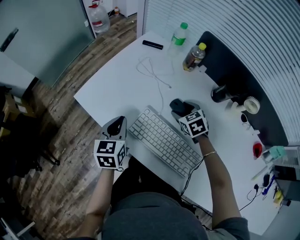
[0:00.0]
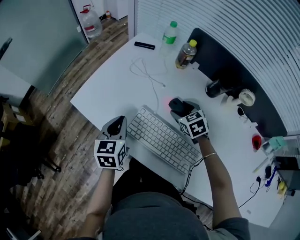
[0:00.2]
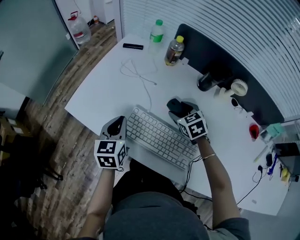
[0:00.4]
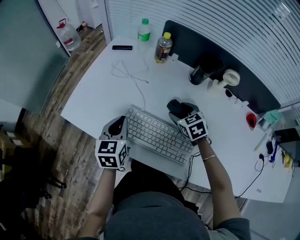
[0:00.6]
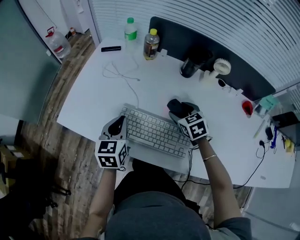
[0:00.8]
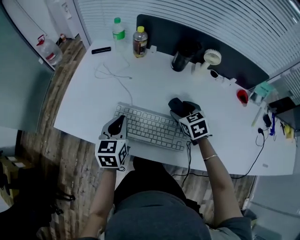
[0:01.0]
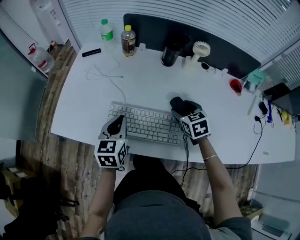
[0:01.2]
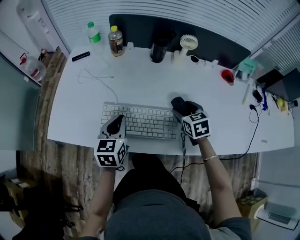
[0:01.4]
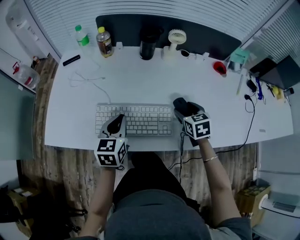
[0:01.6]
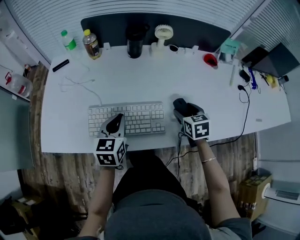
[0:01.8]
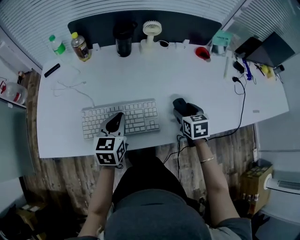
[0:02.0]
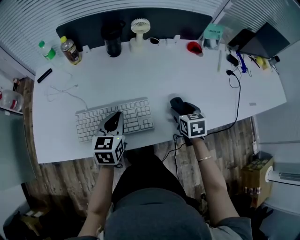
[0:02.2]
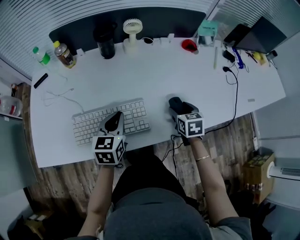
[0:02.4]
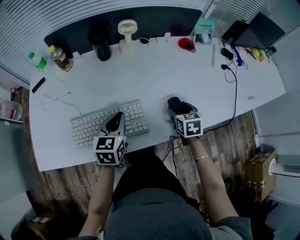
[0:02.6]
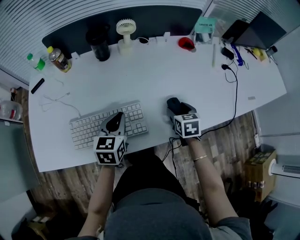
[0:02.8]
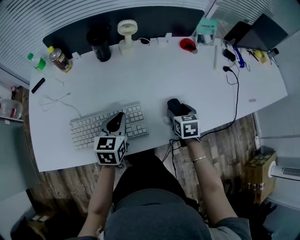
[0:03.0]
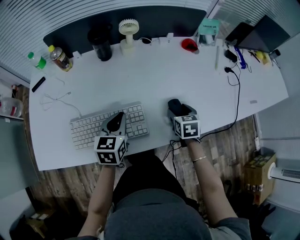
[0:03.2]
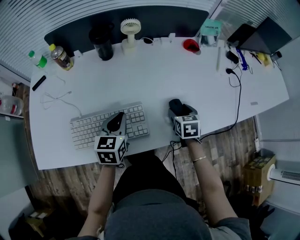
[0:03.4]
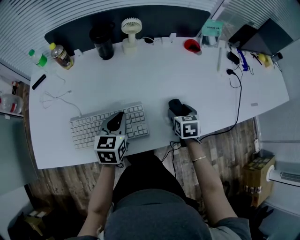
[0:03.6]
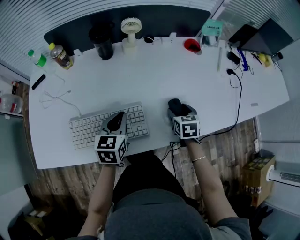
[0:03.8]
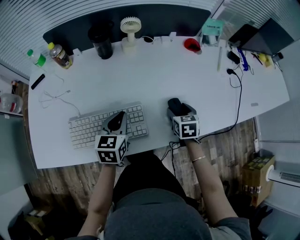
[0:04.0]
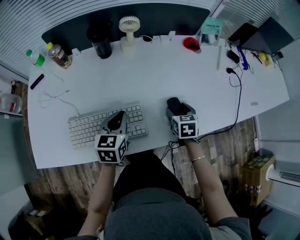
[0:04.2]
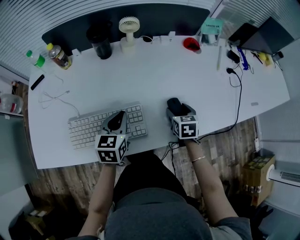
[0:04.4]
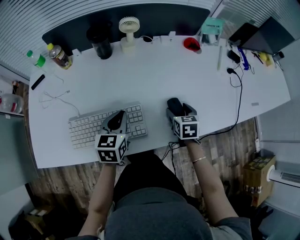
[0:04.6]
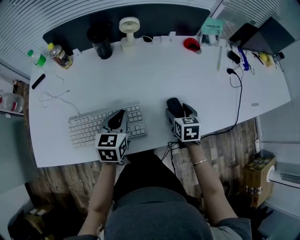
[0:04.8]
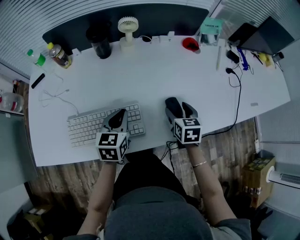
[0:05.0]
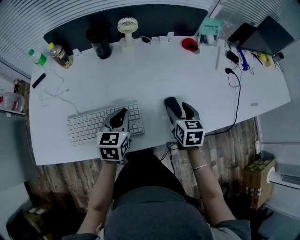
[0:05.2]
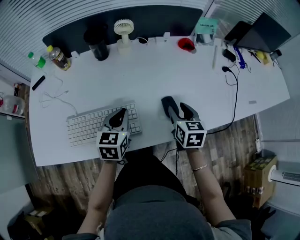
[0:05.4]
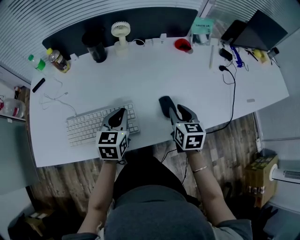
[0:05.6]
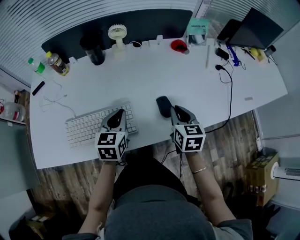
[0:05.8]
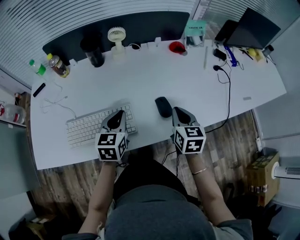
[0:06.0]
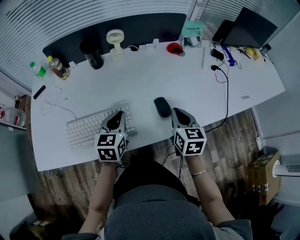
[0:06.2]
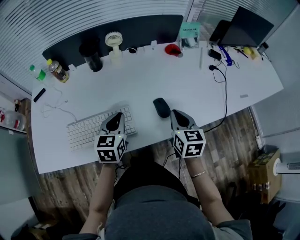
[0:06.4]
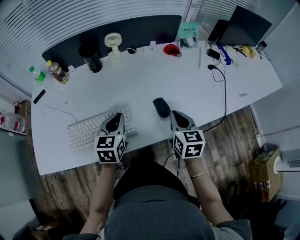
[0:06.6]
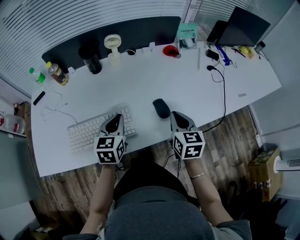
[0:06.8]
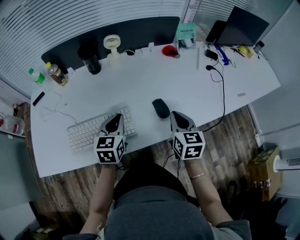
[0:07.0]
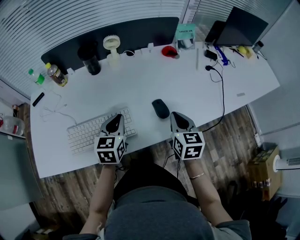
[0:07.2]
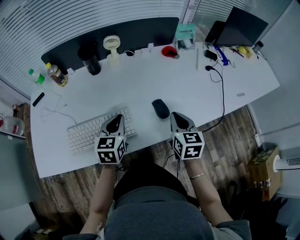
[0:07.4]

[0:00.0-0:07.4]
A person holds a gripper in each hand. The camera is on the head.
0:00.0 to 0:01.4: The right gripper changes place by about 25 cm, and swivels about 40 degrees. Meanwhile the left gripper ends up roughly 15 cm from where it was, and turns by some 30 degrees.
0:01.4 to 0:03.0: Both grippers move to the right, roughly 15 cm. The left gripper swivels approximately 20 degrees; the right gripper turns by about 30 degrees.
0:03.0 to 0:04.4: The grippers make only small movements.
0:04.4 to 0:06.0: The right gripper is displaced upward by approximately 10 cm, and closes its fingers. The left gripper ends up roughly 5 cm from where it was.
0:06.0 to 0:07.4: The grippers move only a little.

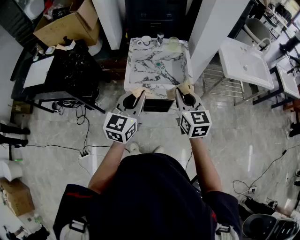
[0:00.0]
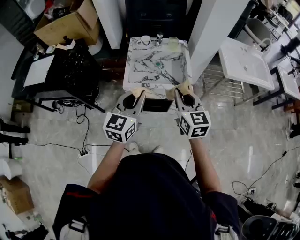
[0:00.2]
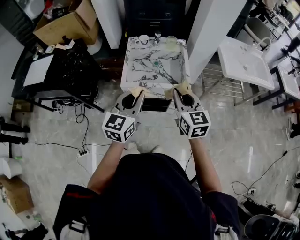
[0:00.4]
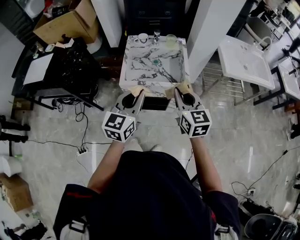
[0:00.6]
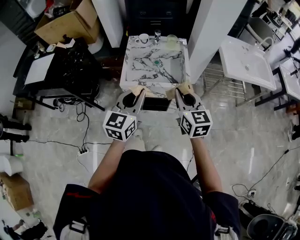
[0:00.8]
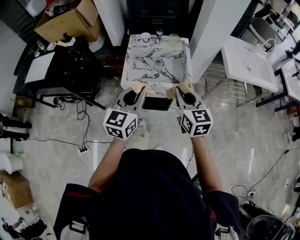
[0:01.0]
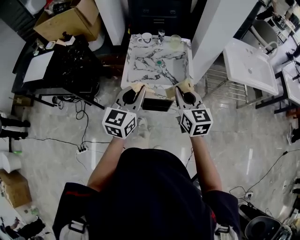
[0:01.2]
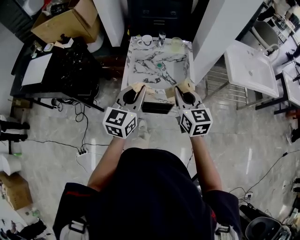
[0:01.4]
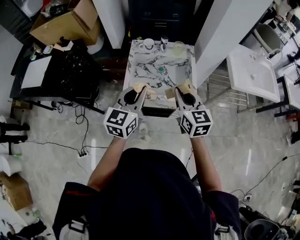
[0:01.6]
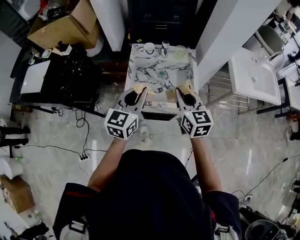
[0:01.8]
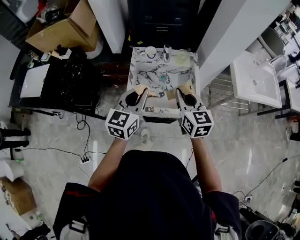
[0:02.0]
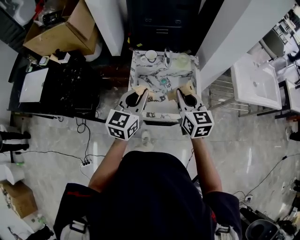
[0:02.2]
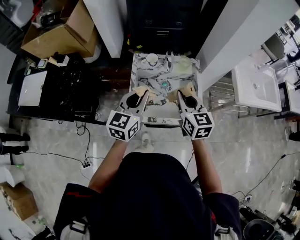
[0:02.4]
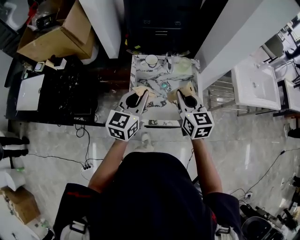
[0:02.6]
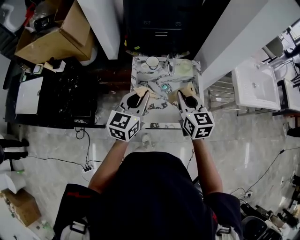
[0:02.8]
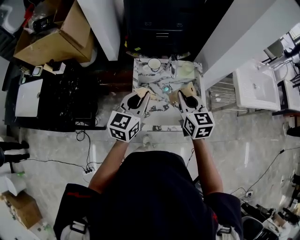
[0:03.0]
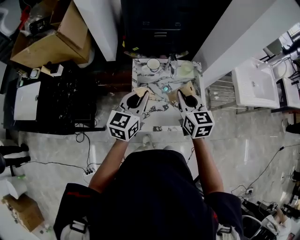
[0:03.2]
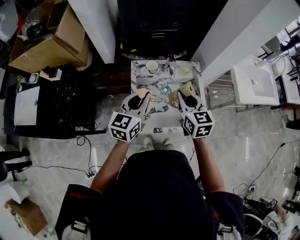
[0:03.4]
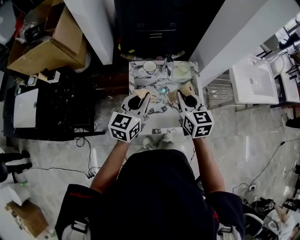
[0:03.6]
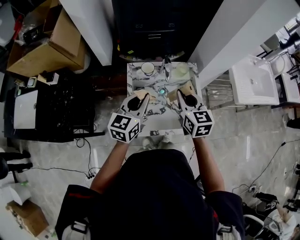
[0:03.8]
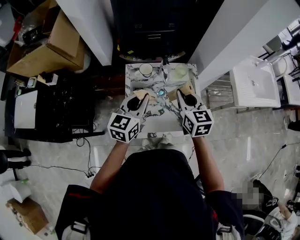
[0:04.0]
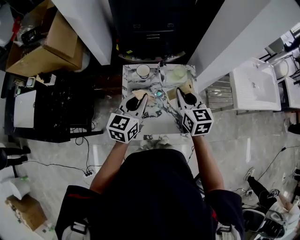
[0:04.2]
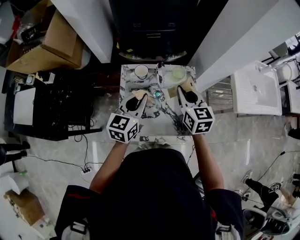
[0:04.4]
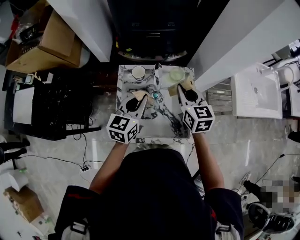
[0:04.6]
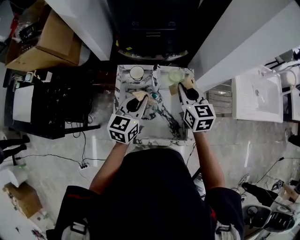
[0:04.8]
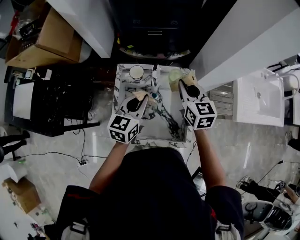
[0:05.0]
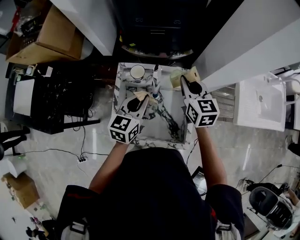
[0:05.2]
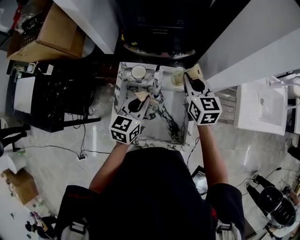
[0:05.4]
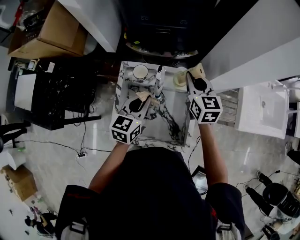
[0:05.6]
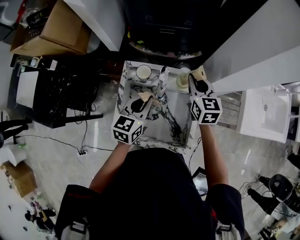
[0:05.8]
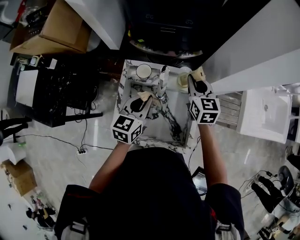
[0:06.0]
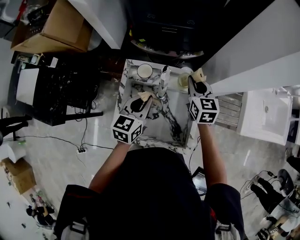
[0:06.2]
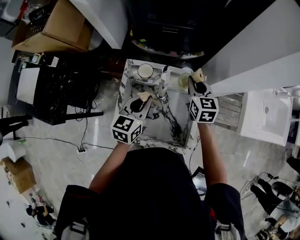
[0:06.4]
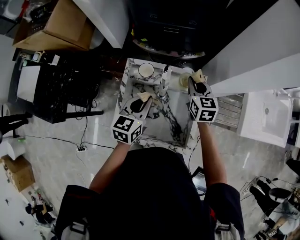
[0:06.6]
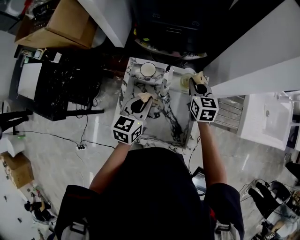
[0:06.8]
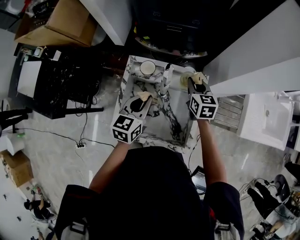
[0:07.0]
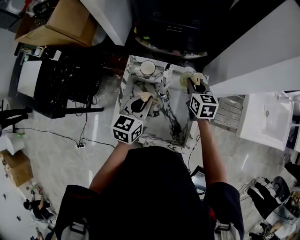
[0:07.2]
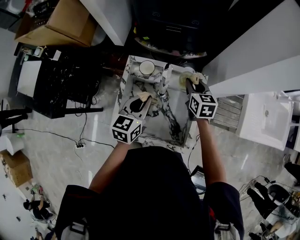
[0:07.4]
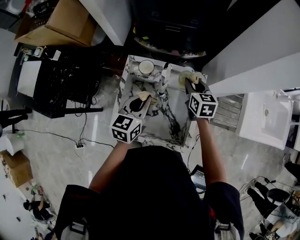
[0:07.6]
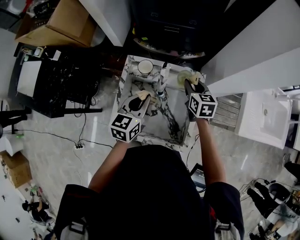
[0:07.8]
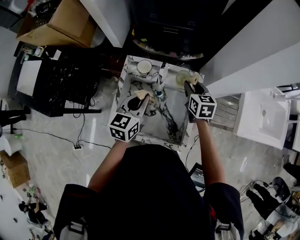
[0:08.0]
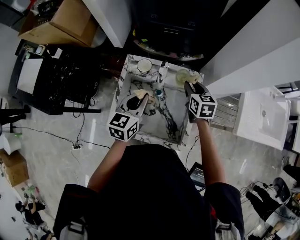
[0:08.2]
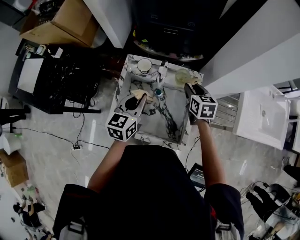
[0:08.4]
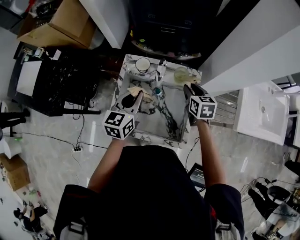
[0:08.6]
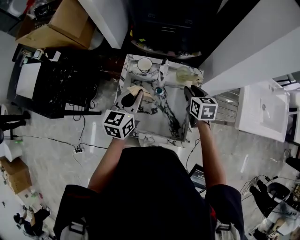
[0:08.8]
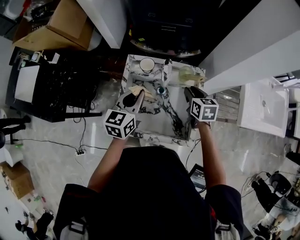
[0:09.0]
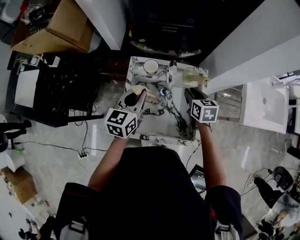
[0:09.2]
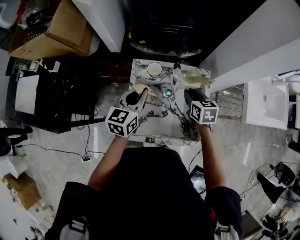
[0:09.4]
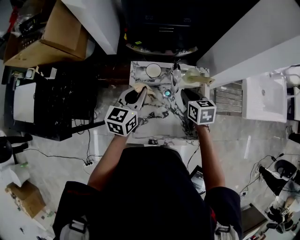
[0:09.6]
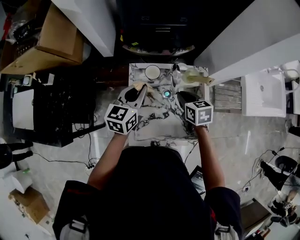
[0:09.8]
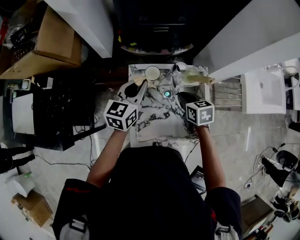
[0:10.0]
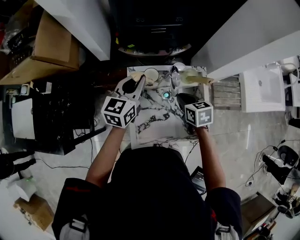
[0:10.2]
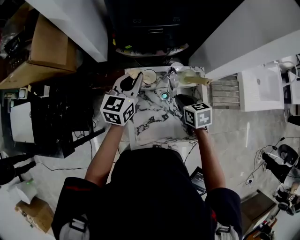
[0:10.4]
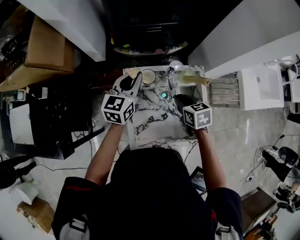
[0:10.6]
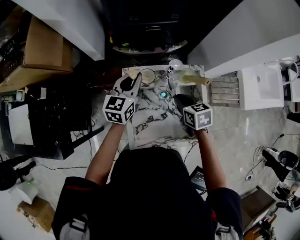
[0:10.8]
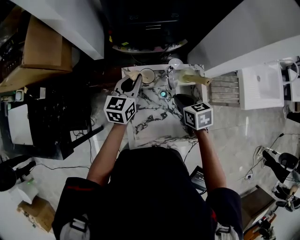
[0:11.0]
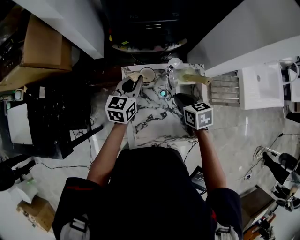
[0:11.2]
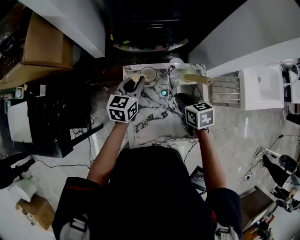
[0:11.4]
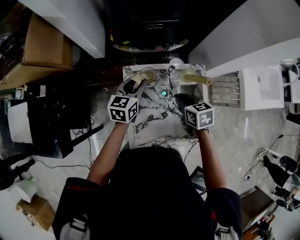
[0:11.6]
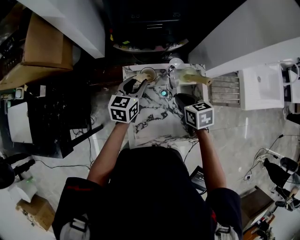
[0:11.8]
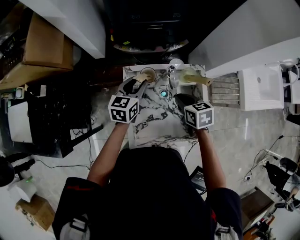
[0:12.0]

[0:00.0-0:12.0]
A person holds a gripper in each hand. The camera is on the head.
0:00.0 to 0:01.6: The grippers both shift forward by approximately 10 cm.
0:01.6 to 0:03.0: The grippers both shift forward and to the left by some 20 cm.
0:03.0 to 0:04.4: Both grippers move forward and to the right, some 10 cm.
0:04.4 to 0:06.0: The left gripper shifts by roughly 5 cm. Meanwhile the right gripper goes about 10 cm forward.
0:06.0 to 0:07.6: The right gripper is displaced downward by approximately 5 cm.
0:07.6 to 0:09.0: The right gripper moves backward, about 5 cm.
0:09.0 to 0:10.4: The left gripper travels forward by roughly 15 cm. Meanwhile the right gripper heads to the left, covering roughly 10 cm.
0:10.4 to 0:12.0: The left gripper goes about 10 cm downward, and opens its fingers.

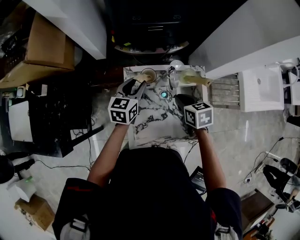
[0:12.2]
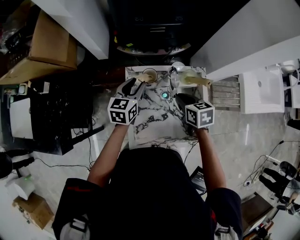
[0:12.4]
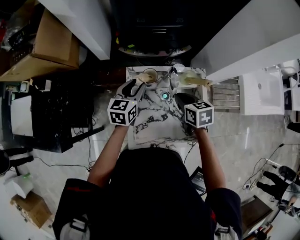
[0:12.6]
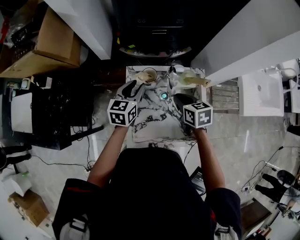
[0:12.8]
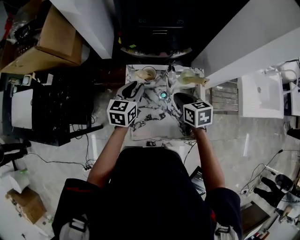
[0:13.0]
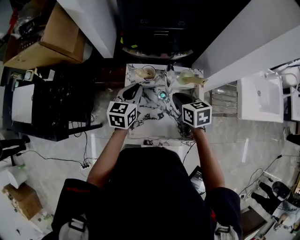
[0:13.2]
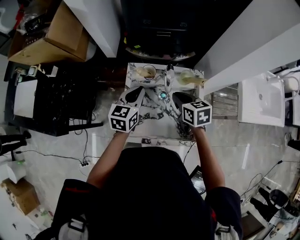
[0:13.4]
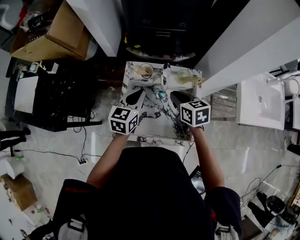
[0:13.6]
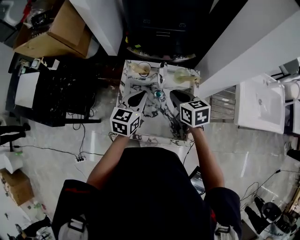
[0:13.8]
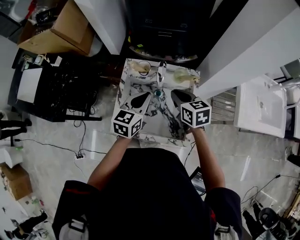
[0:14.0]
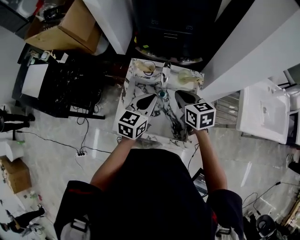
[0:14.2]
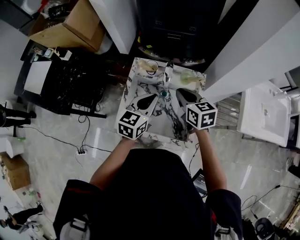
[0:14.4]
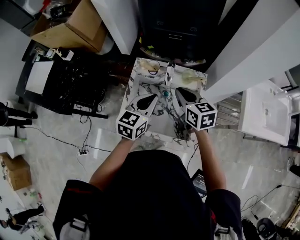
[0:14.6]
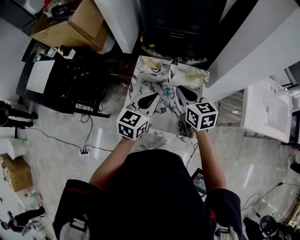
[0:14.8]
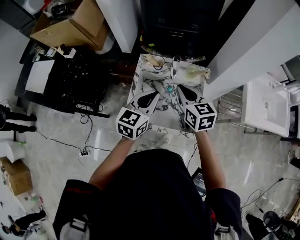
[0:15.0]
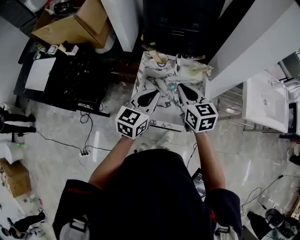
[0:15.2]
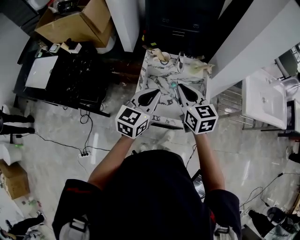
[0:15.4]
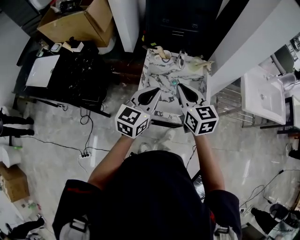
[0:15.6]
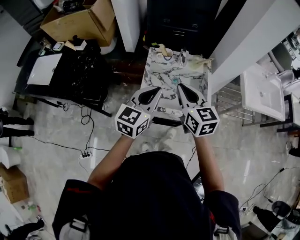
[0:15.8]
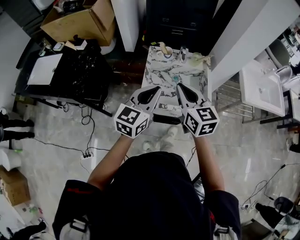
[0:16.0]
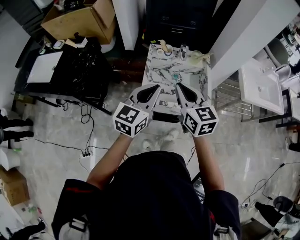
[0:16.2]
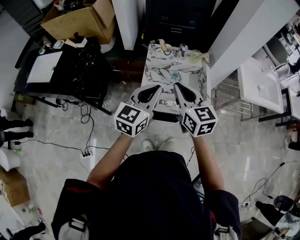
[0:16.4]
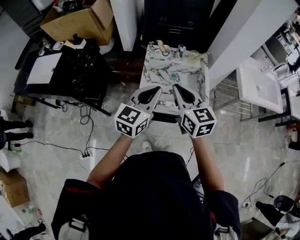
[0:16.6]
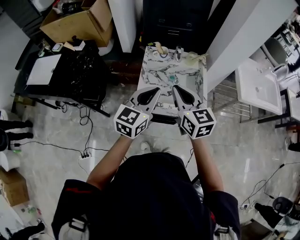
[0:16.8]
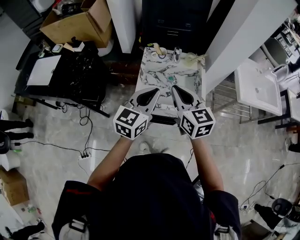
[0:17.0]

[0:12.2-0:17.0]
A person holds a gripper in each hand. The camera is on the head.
0:12.2 to 0:13.8: The right gripper is displaced upward by approximately 5 cm. The left gripper is displaced backward and to the right by approximately 15 cm, and closes.
0:13.8 to 0:15.4: The left gripper moves backward and upward, approximately 15 cm, while the right gripper travels backward, upward and to the left by some 15 cm, and turns by roughly 20 degrees.
0:15.4 to 0:17.0: The right gripper shifts roughly 15 cm backward and upward. The left gripper is displaced backward by approximately 10 cm.
